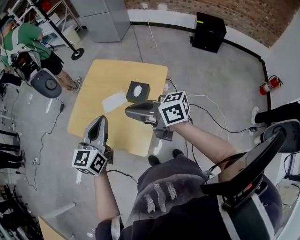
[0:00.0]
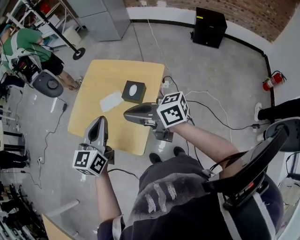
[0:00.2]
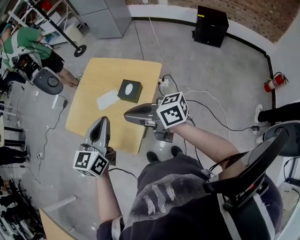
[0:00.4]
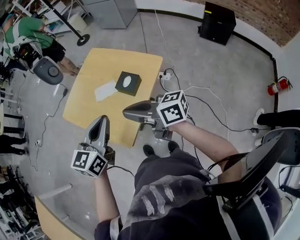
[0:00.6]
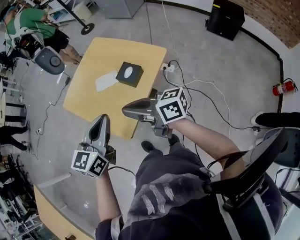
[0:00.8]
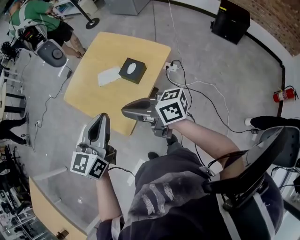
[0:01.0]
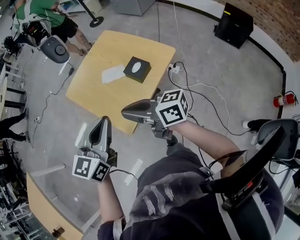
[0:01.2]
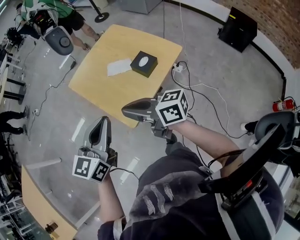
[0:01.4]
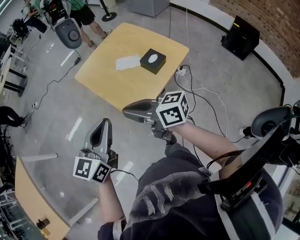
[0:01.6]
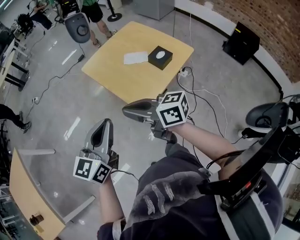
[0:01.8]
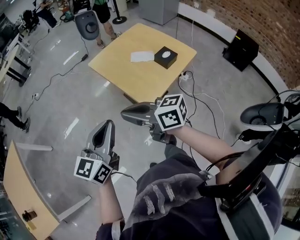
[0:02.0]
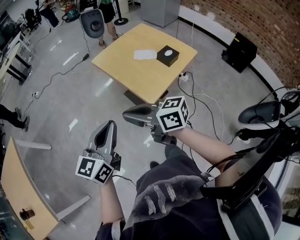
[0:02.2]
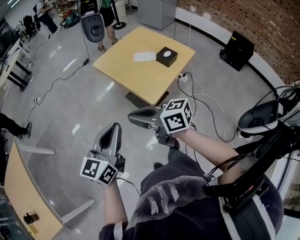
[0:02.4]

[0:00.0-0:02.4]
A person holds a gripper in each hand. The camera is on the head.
0:00.0 to 0:01.2: The two grippers go approximately 10 cm backward.
0:01.2 to 0:02.4: Both grippers move to the left and backward, roughly 30 cm.

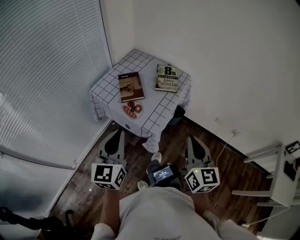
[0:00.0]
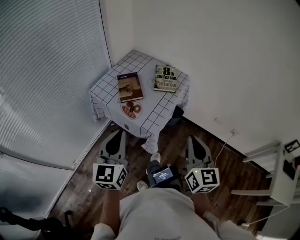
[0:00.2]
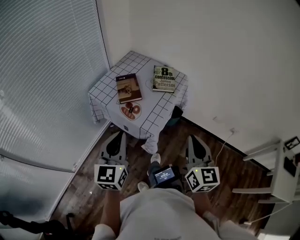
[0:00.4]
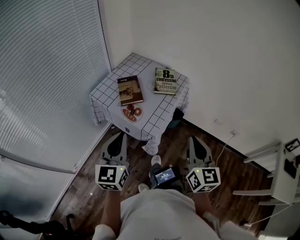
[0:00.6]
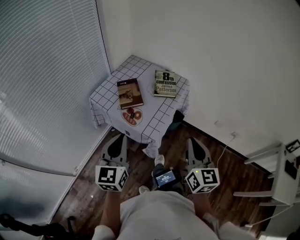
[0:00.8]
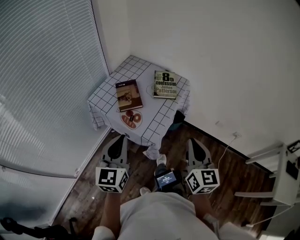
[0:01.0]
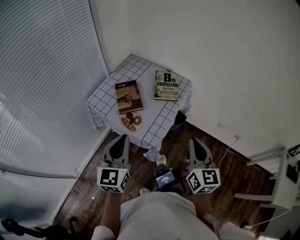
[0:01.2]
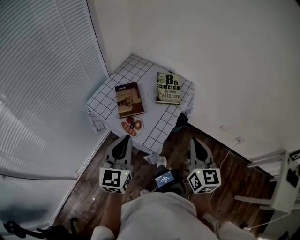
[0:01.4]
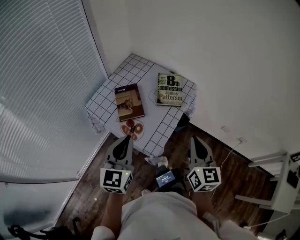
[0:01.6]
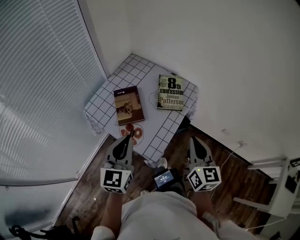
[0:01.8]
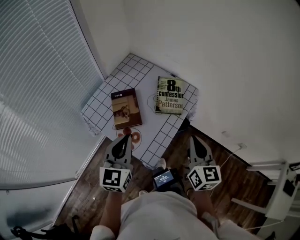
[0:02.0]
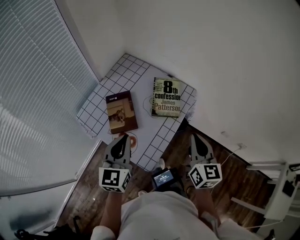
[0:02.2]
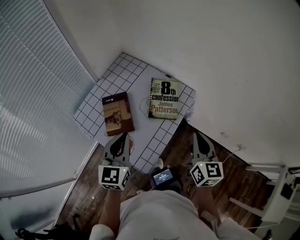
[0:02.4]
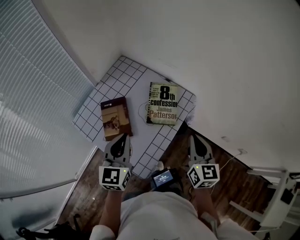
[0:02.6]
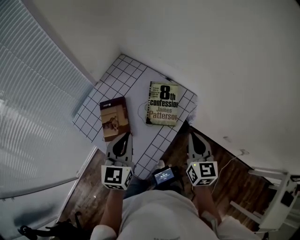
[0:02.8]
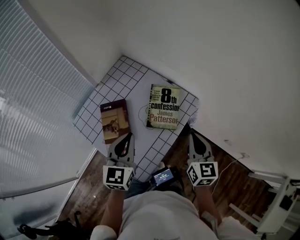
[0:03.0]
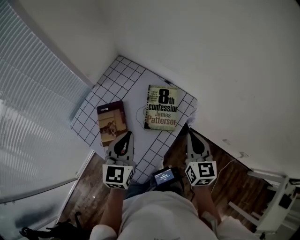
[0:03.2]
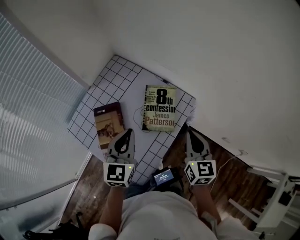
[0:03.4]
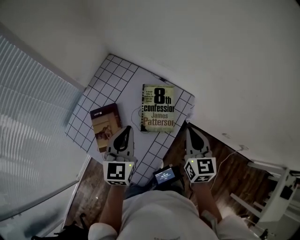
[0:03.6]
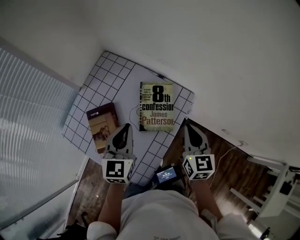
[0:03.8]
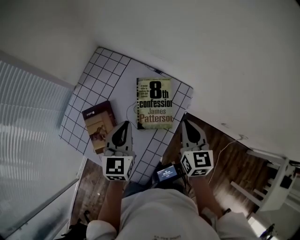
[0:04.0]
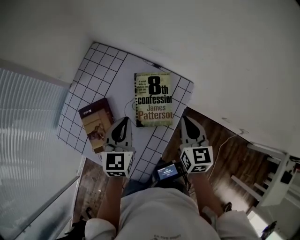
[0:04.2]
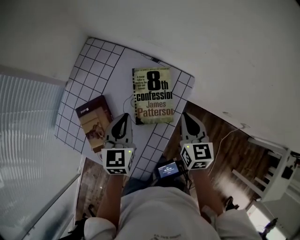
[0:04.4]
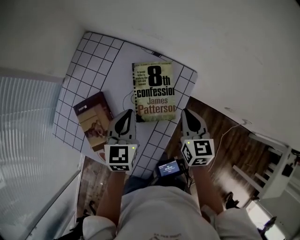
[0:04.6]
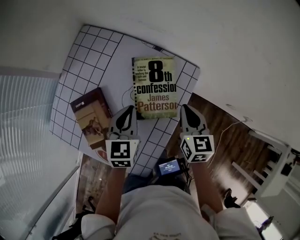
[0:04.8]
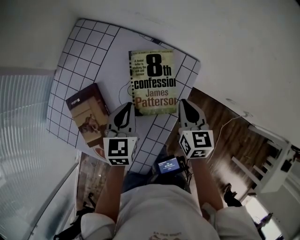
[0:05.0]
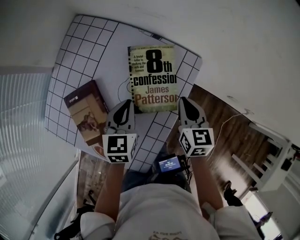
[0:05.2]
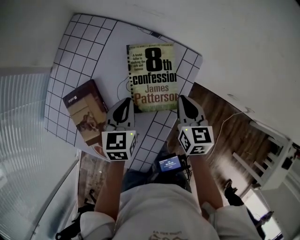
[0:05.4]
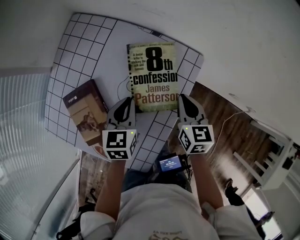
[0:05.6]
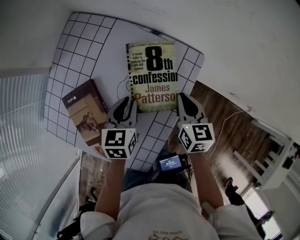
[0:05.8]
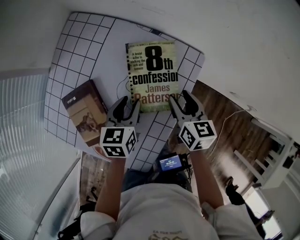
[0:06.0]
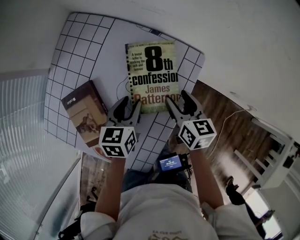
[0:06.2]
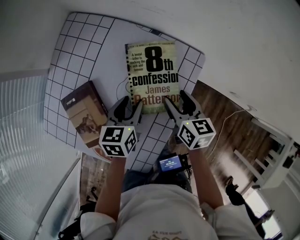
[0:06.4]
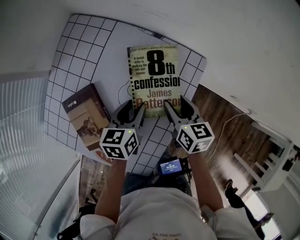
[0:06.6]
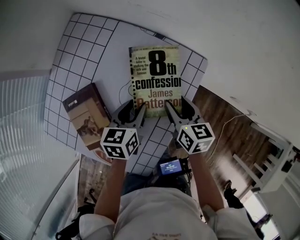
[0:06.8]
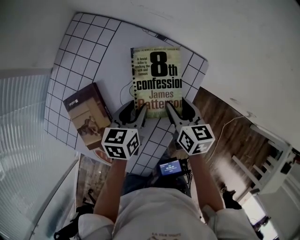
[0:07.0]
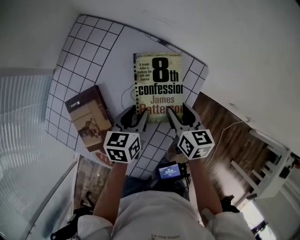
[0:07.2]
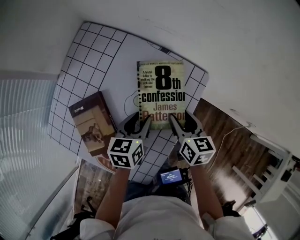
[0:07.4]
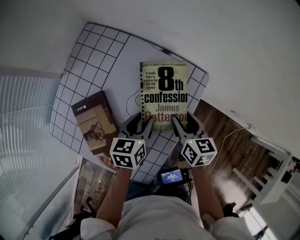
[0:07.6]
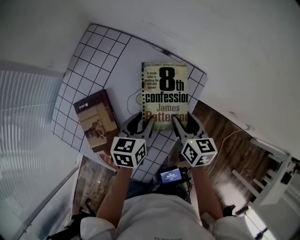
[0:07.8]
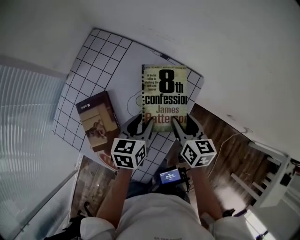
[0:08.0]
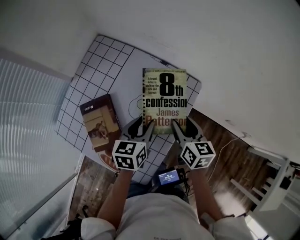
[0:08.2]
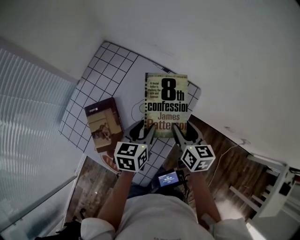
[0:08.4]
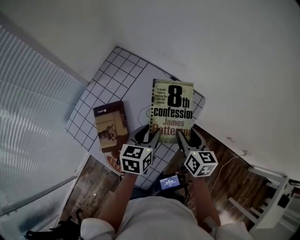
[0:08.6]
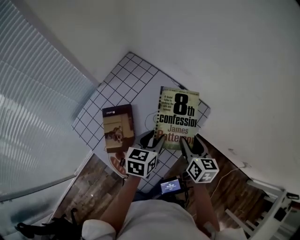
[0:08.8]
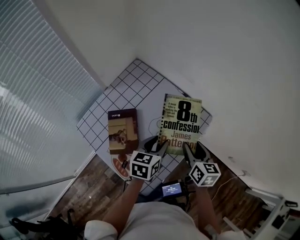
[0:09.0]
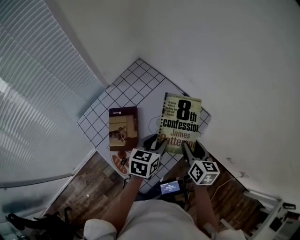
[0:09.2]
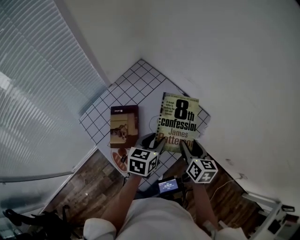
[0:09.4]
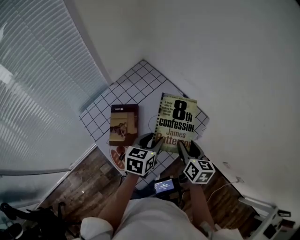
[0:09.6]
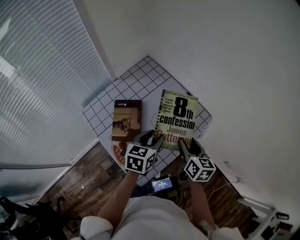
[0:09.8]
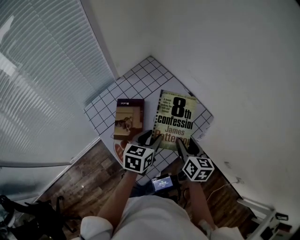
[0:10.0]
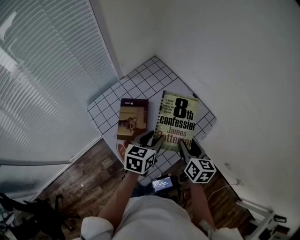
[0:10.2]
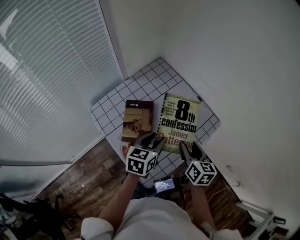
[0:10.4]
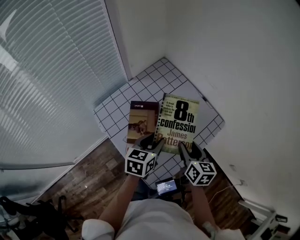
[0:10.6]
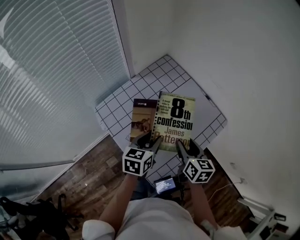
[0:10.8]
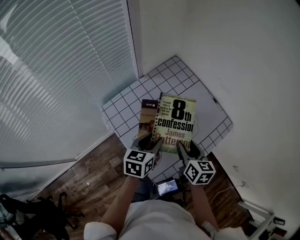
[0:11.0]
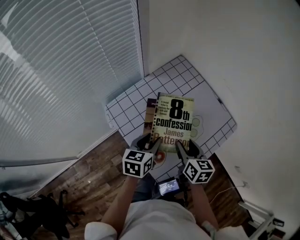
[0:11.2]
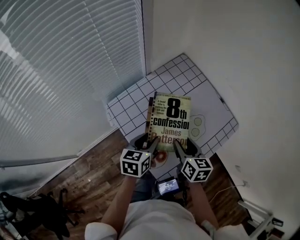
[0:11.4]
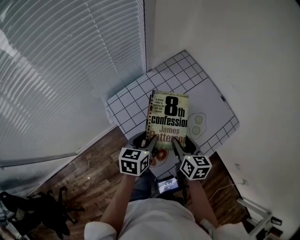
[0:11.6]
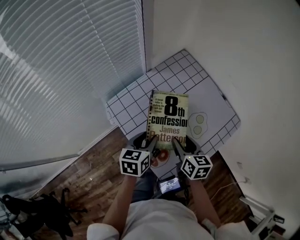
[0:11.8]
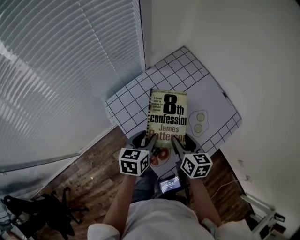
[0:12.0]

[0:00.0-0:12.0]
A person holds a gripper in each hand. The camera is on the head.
0:00.0 to 0:01.6: The grippers both shift forward by approximately 15 cm.
0:01.6 to 0:03.0: Both grippers move forward, some 20 cm.
0:03.0 to 0:04.4: The left gripper heads forward and downward, covering approximately 15 cm, while the right gripper moves downward and forward, some 10 cm.
0:04.4 to 0:06.0: The grippers both shift downward by about 10 cm. The right gripper opens its fingers. The left gripper changes its angle by approximately 20 degrees, and opens its fingers.
0:06.0 to 0:07.6: The grippers make only small movements.
0:07.6 to 0:09.0: The two grippers go roughly 10 cm upward.
0:09.0 to 0:10.4: The grippers both shift to the left by about 10 cm.
0:10.4 to 0:12.0: The grippers both shift to the left by about 15 cm.

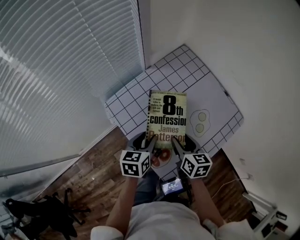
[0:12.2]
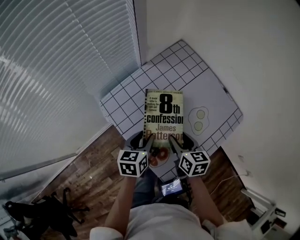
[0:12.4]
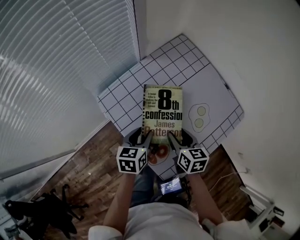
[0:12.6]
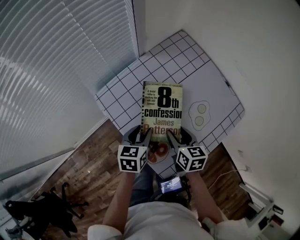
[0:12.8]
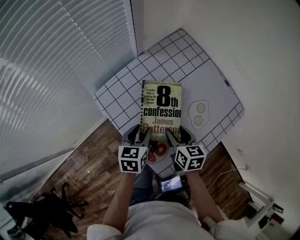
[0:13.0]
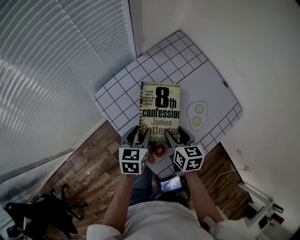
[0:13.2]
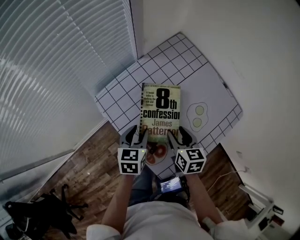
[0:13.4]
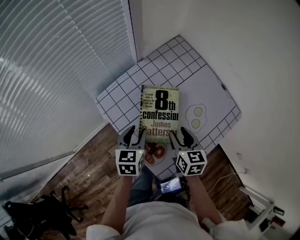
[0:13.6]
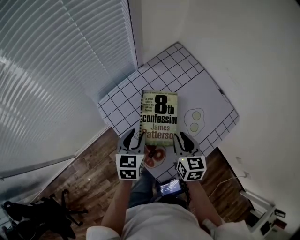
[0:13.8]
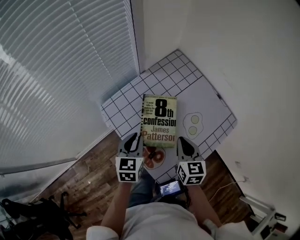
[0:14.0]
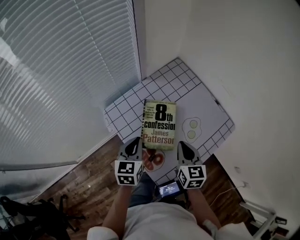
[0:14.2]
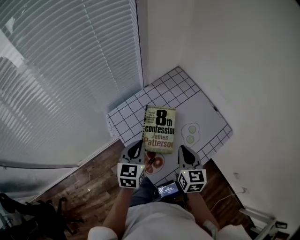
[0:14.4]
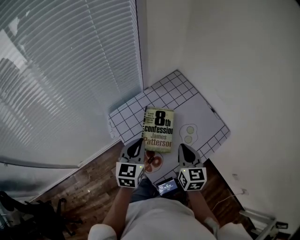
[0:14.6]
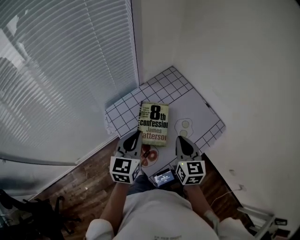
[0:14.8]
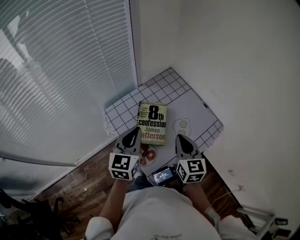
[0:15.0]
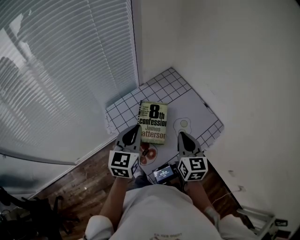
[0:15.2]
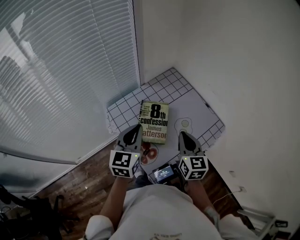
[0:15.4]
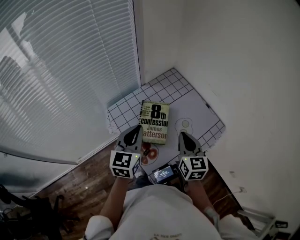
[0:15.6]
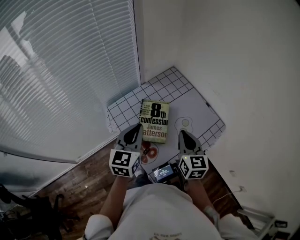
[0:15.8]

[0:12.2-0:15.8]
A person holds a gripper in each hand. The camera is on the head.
0:12.2 to 0:14.0: The left gripper closes. Meanwhile the right gripper closes up.
0:14.0 to 0:15.8: Both grippers move upward, some 15 cm. The left gripper swivels roughly 20 degrees.

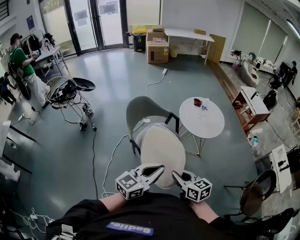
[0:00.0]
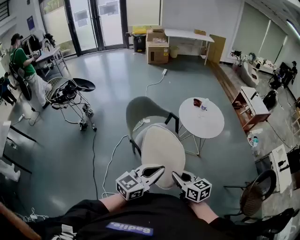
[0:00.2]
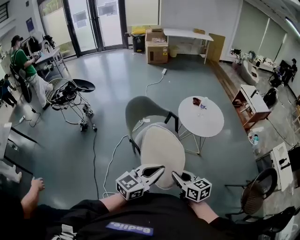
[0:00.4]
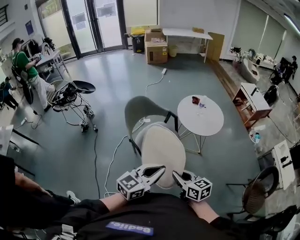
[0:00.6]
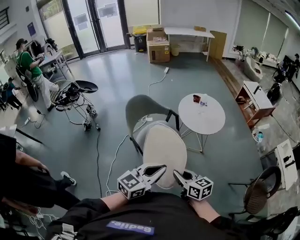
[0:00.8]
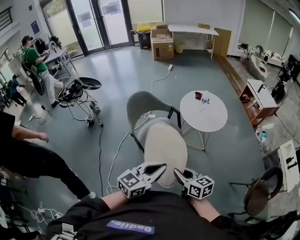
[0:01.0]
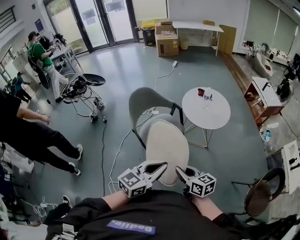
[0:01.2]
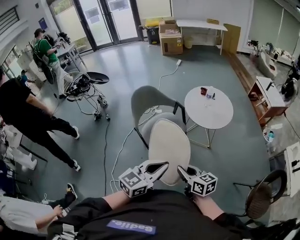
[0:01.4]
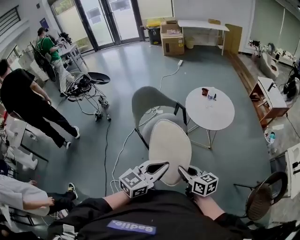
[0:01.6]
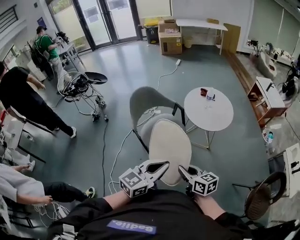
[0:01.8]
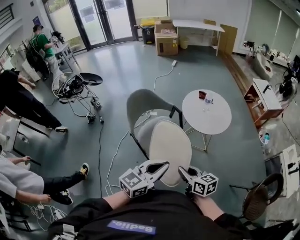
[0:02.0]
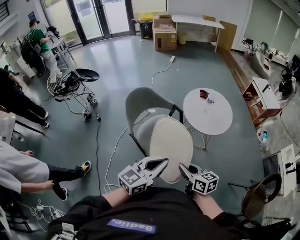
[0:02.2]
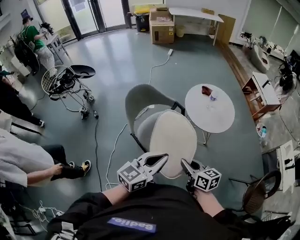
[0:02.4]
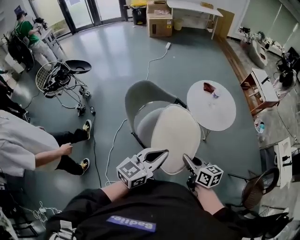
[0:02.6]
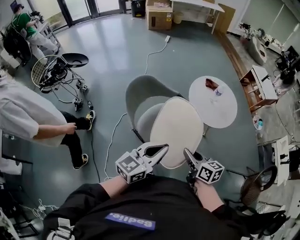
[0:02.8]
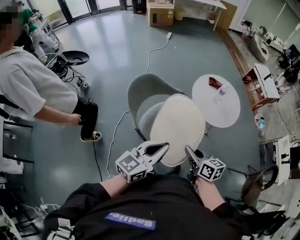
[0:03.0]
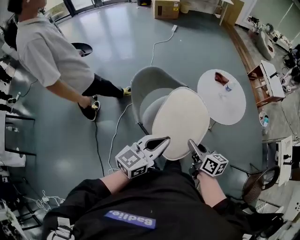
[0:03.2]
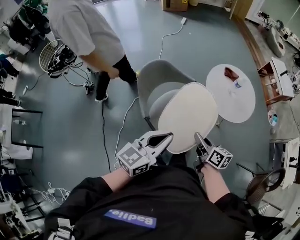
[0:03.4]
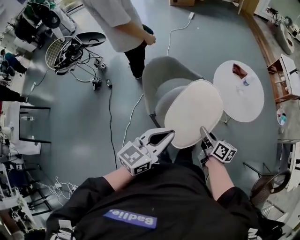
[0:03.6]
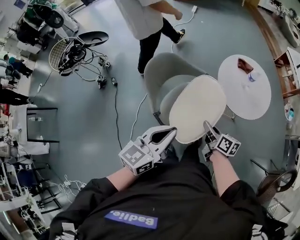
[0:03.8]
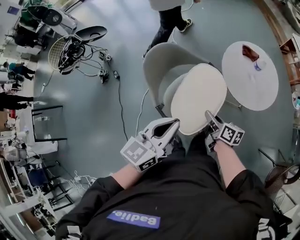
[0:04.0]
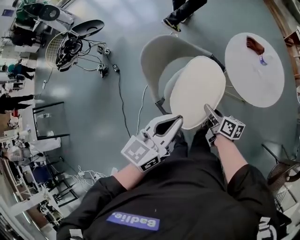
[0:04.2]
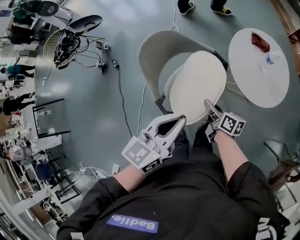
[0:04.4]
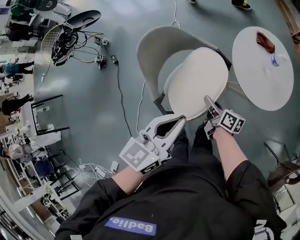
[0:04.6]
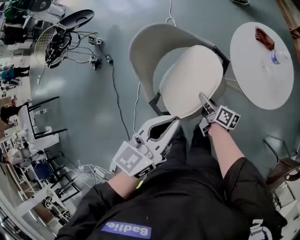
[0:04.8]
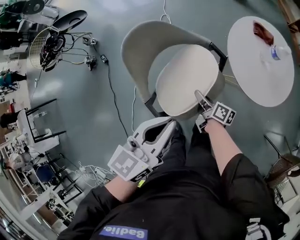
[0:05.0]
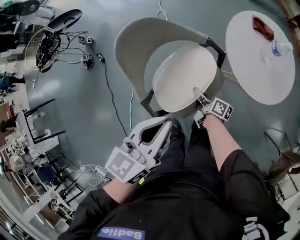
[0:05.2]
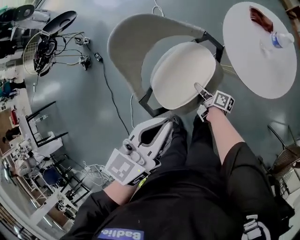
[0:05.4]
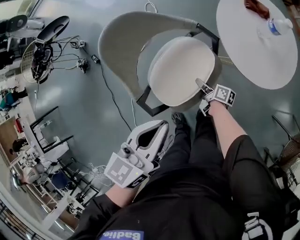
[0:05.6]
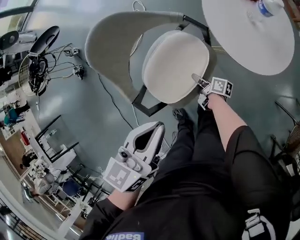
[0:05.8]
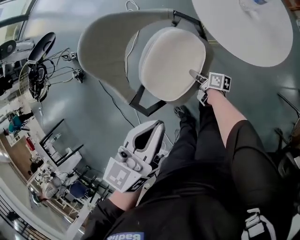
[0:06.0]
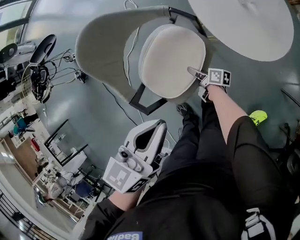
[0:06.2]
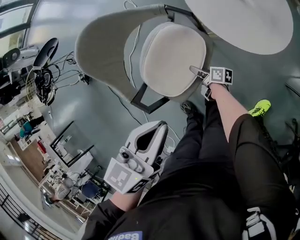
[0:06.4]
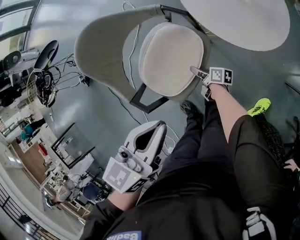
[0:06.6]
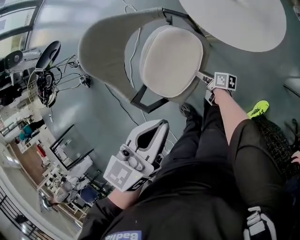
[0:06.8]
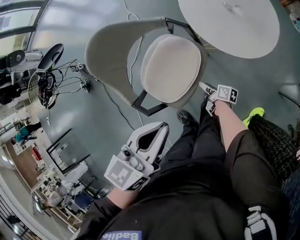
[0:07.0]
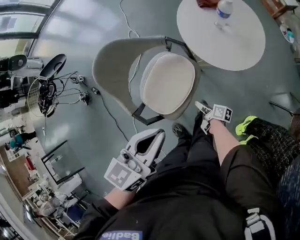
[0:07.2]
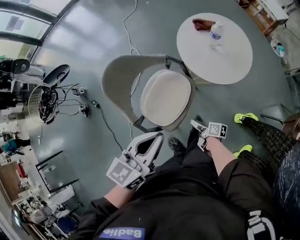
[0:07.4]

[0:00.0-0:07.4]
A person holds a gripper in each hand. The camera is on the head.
0:00.0 to 0:01.4: Both grippers move to the right, about 10 cm.
0:01.4 to 0:03.0: The two grippers go approximately 25 cm forward and to the left.
0:03.0 to 0:04.4: The right gripper is displaced downward and forward by some 25 cm, and rotates about 20 degrees, while the left gripper is displaced forward and downward by roughly 10 cm.
0:04.4 to 0:06.0: The right gripper goes some 25 cm downward, and turns by about 20 degrees; the left gripper is displaced downward by roughly 10 cm.
0:06.0 to 0:07.4: The left gripper travels upward and backward by about 10 cm; the right gripper moves backward, upward and to the right, approximately 20 cm, and opens its fingers.
